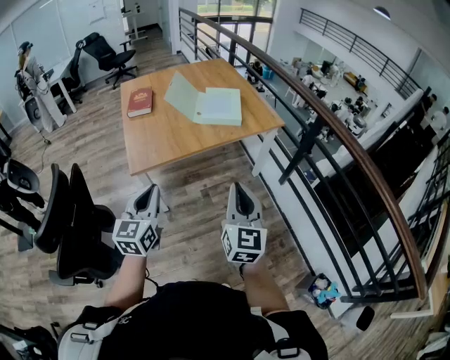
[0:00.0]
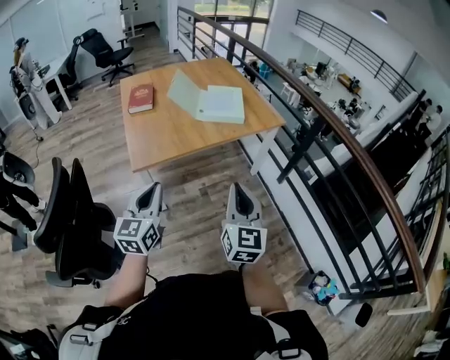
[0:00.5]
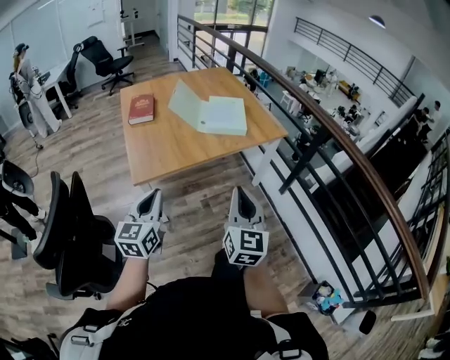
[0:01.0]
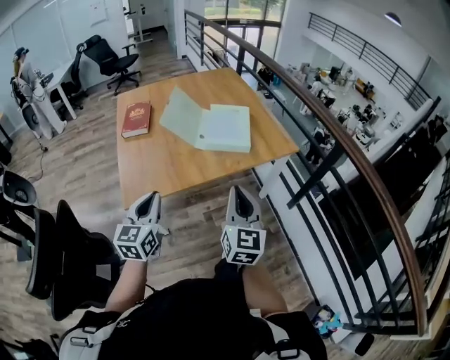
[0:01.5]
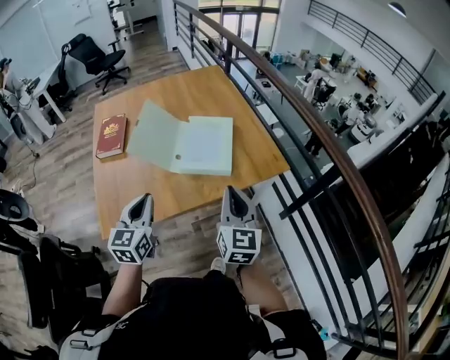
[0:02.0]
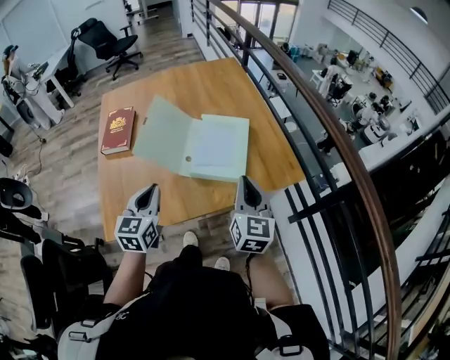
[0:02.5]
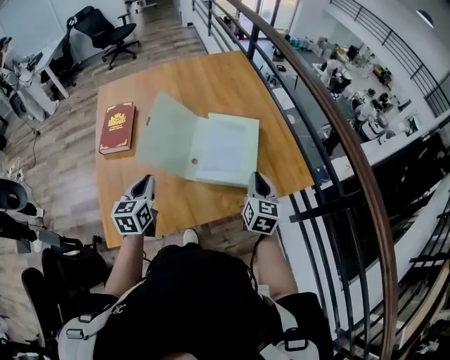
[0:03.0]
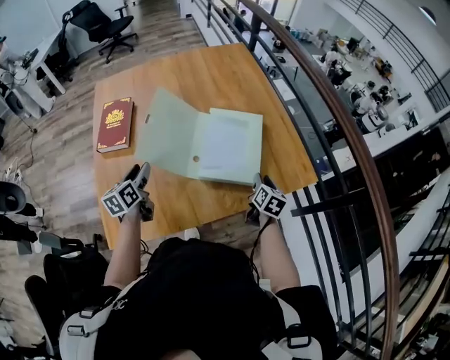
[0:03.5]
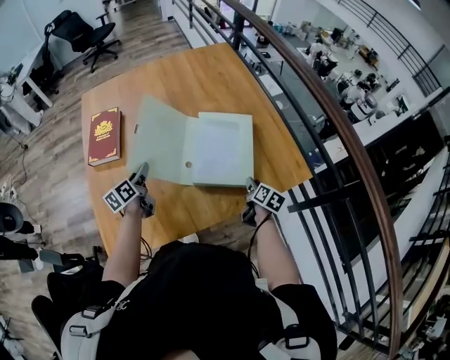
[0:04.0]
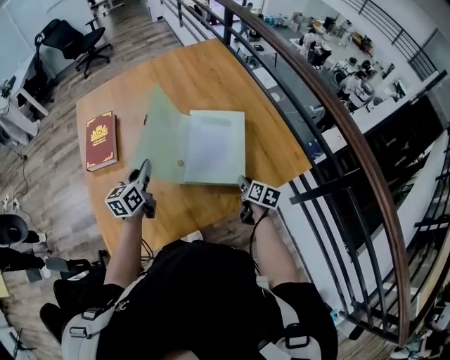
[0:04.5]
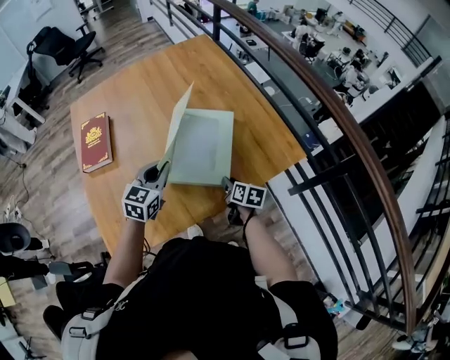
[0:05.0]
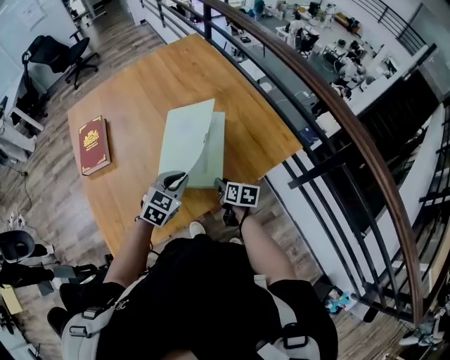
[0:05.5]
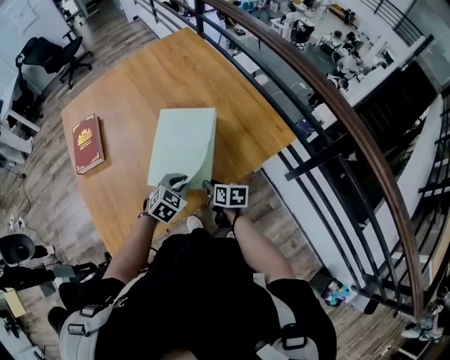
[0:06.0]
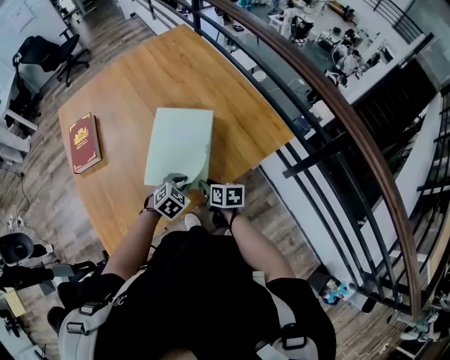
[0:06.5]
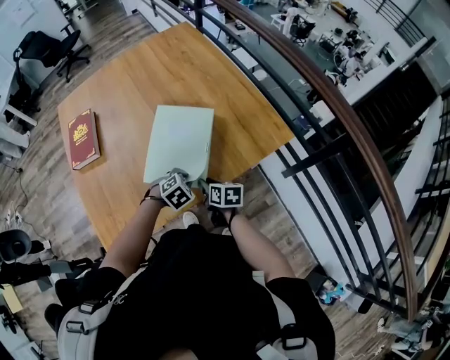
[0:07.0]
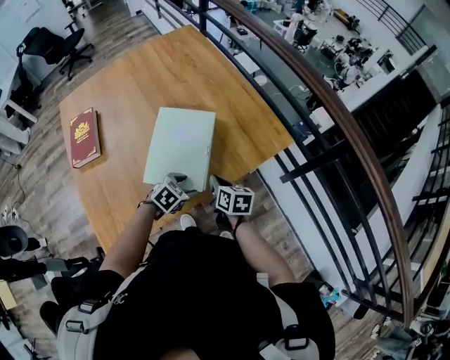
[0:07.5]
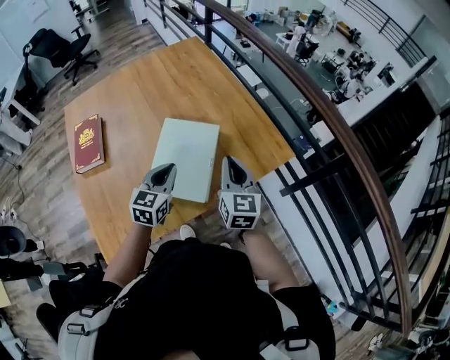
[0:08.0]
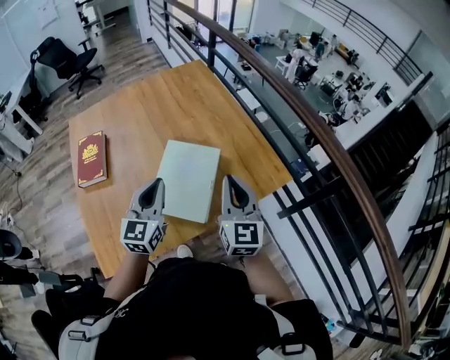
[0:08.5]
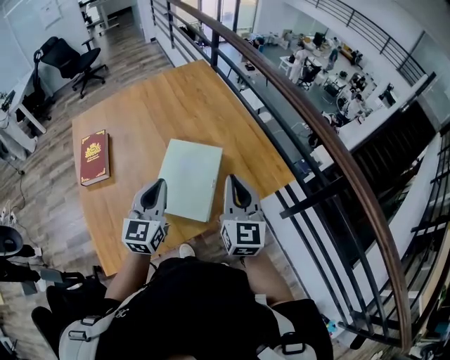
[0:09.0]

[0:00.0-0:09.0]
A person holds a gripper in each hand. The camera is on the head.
0:00.0 to 0:02.0: Both grippers travel together forward, roughly 35 cm.
0:02.0 to 0:04.5: The left gripper travels forward, downward and to the left by about 30 cm, changes its angle by roughly 20 degrees, and opens, then closes again. Meanwhile the right gripper is displaced downward and forward by roughly 35 cm, tips its fingers downward by roughly 40 degrees, and opens its fingers.
0:04.5 to 0:07.0: The right gripper moves backward and to the left, about 10 cm, while the left gripper is displaced to the right, downward and backward by about 30 cm, and points its fingers about 50 degrees further downward.
0:07.0 to 0:09.0: The grippers both shift upward by about 30 cm. The left gripper points its fingers some 60 degrees further upward, and opens, then closes once more; the right gripper points its fingers approximately 40 degrees further upward, and closes up.

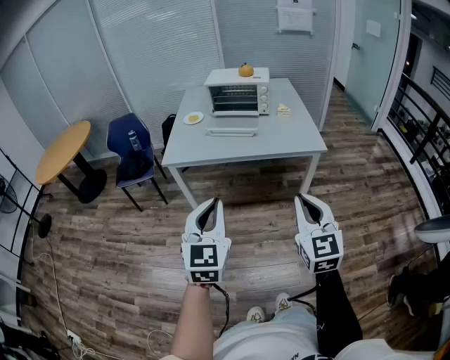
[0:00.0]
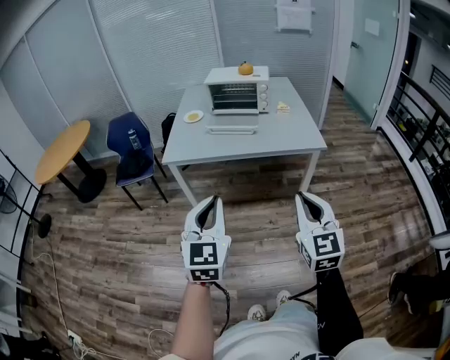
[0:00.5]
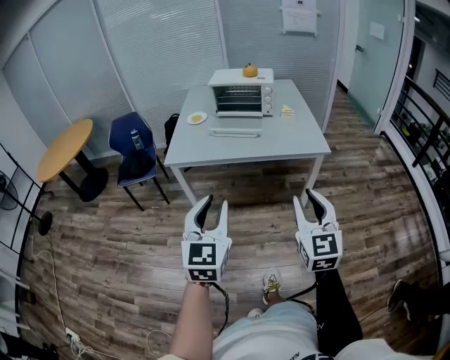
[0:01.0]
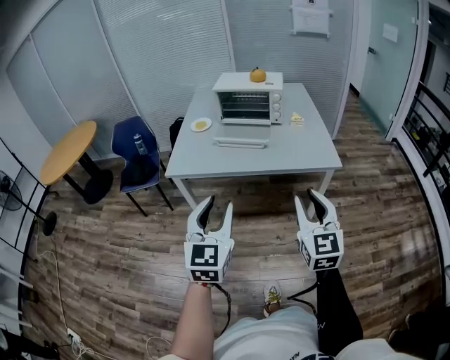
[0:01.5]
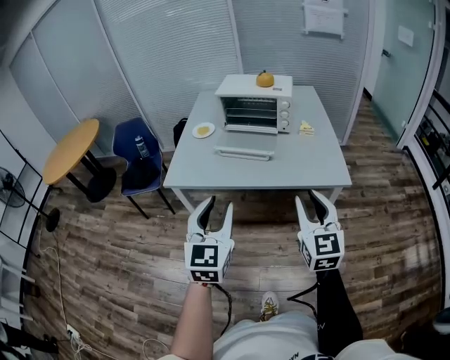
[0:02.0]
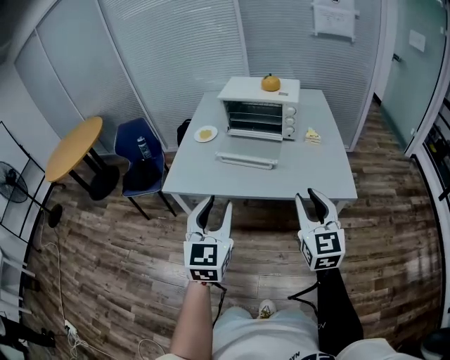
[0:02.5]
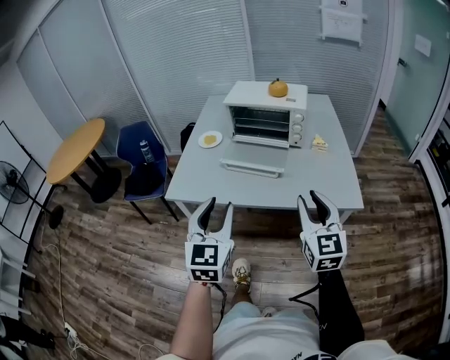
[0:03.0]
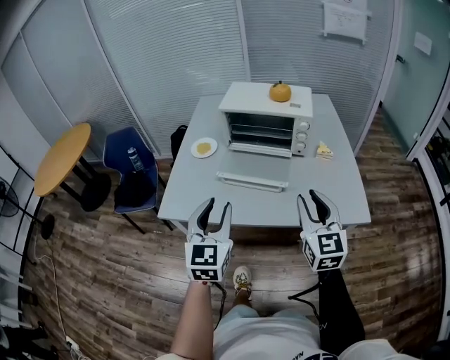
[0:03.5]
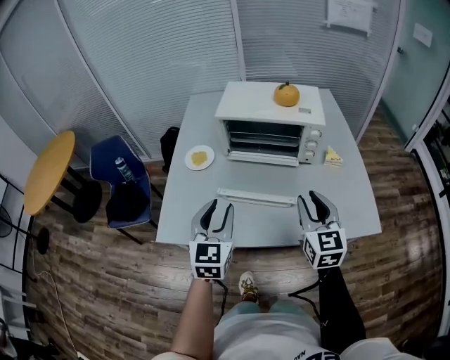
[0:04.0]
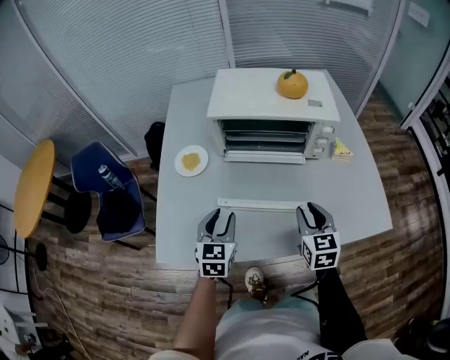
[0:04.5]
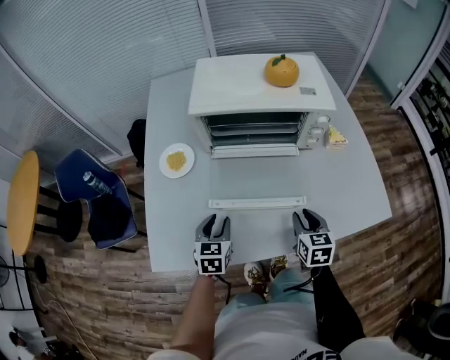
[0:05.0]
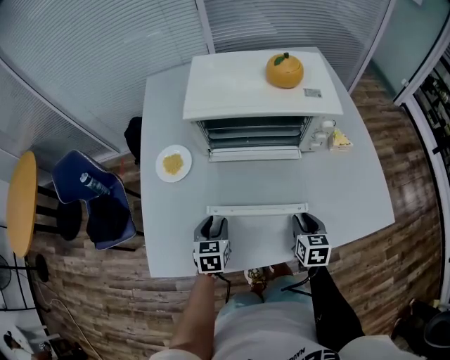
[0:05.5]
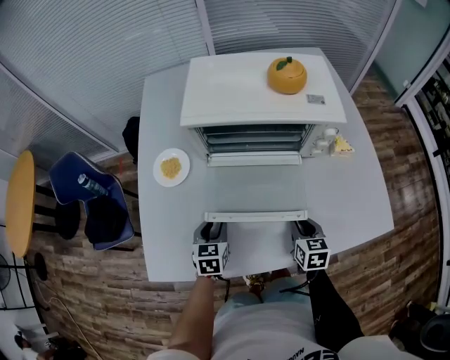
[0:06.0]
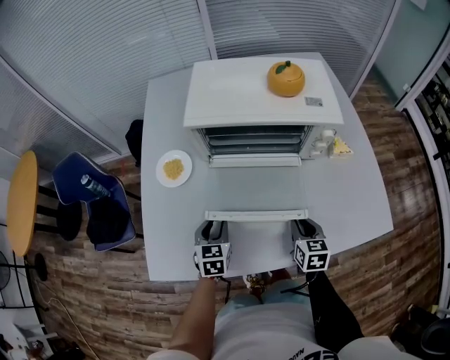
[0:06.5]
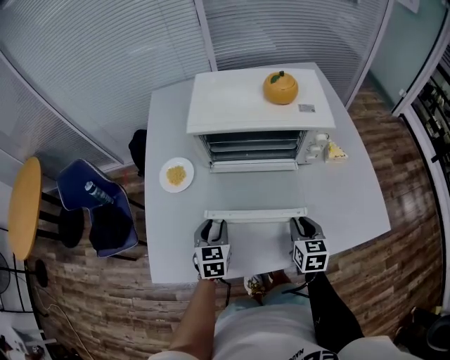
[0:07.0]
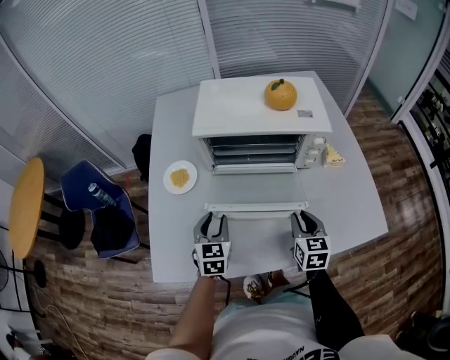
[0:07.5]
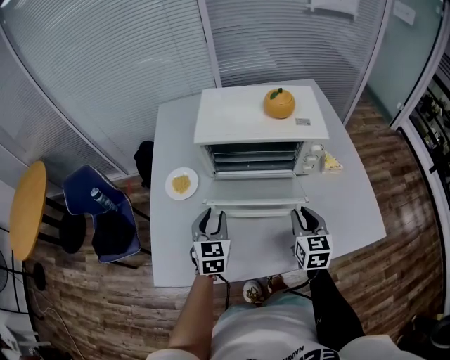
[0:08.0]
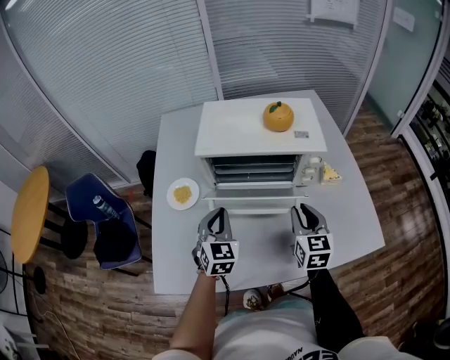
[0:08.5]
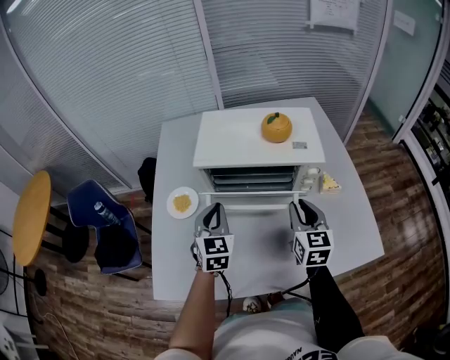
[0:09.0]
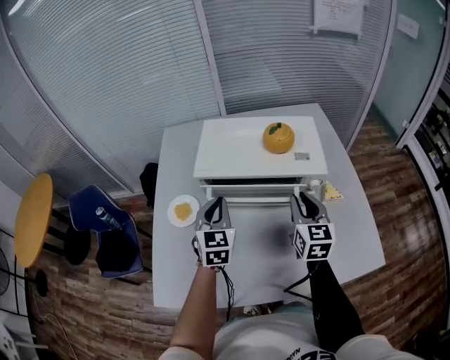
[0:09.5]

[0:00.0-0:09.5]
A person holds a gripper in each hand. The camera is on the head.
0:00.0 to 0:02.0: The two grippers go roughly 20 cm forward. The right gripper opens up; the left gripper opens its fingers.
0:02.0 to 0:04.0: Both grippers travel together forward, about 35 cm.
0:04.0 to 0:05.5: The right gripper shifts about 25 cm downward, and tips its fingers downward by some 30 degrees. The left gripper shifts roughly 30 cm downward and forward, and turns by approximately 30 degrees.
0:05.5 to 0:07.5: The two grippers go roughly 10 cm upward.
0:07.5 to 0:09.5: The grippers both shift upward and forward by approximately 20 cm. The left gripper closes up.

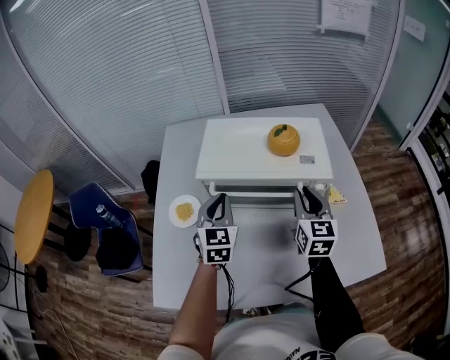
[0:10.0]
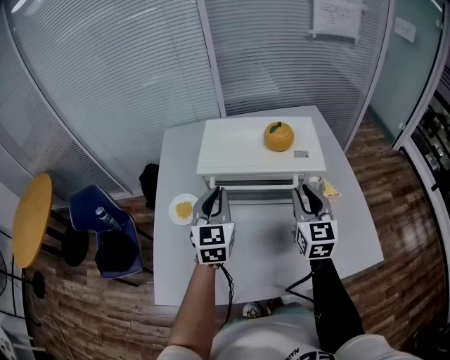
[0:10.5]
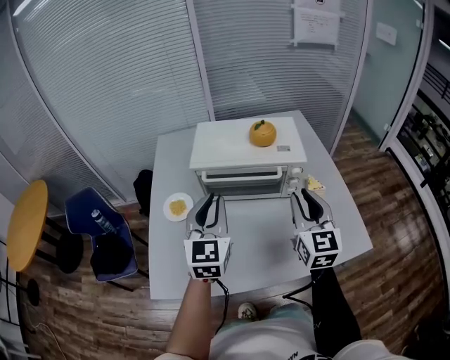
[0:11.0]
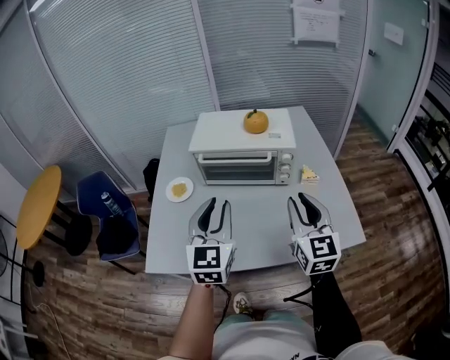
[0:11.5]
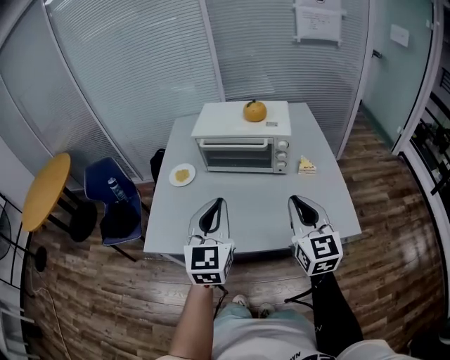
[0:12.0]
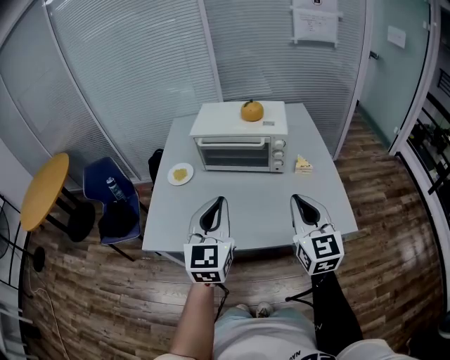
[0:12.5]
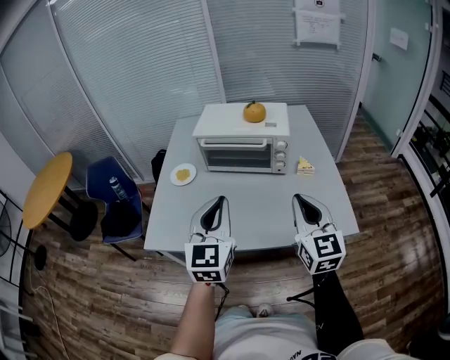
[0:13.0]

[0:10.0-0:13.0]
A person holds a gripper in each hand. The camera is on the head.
0:10.0 to 0:11.5: The right gripper heads backward, covering some 20 cm. Meanwhile the left gripper shifts about 25 cm backward and upward.
0:11.5 to 0:13.0: The grippers both shift backward by roughly 10 cm.

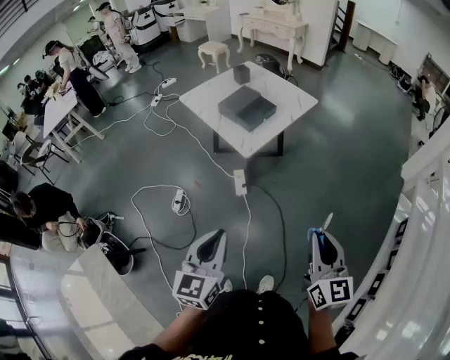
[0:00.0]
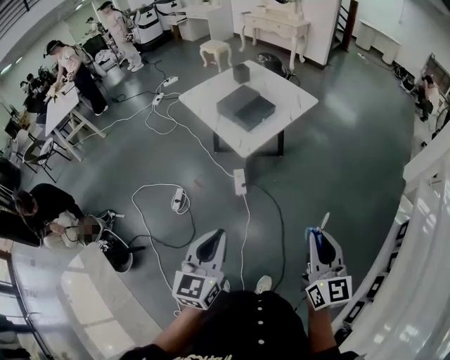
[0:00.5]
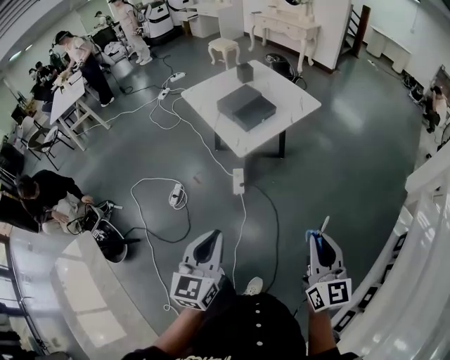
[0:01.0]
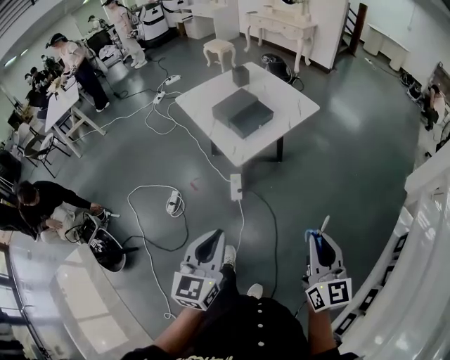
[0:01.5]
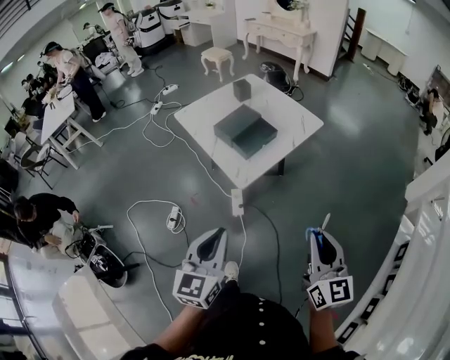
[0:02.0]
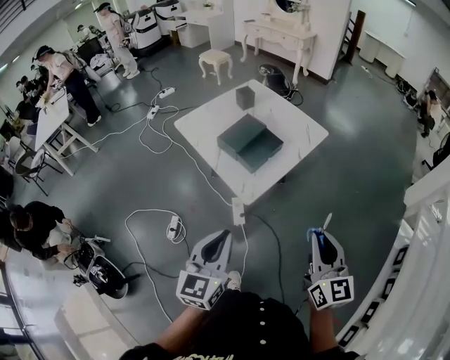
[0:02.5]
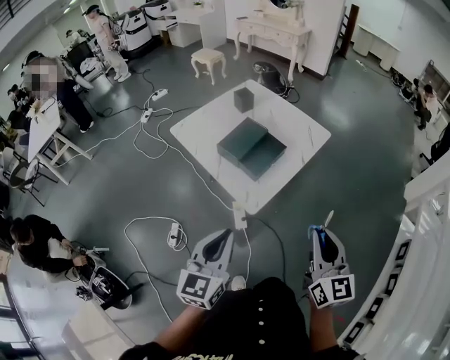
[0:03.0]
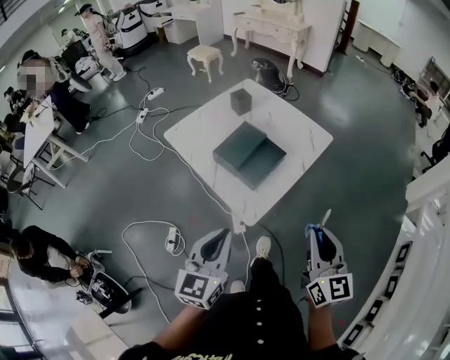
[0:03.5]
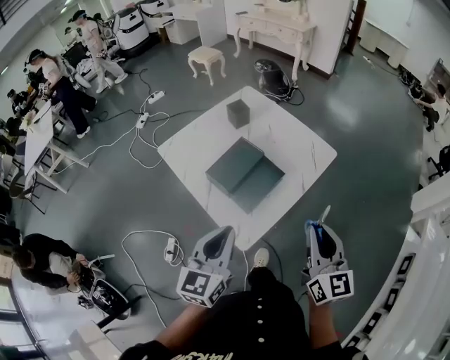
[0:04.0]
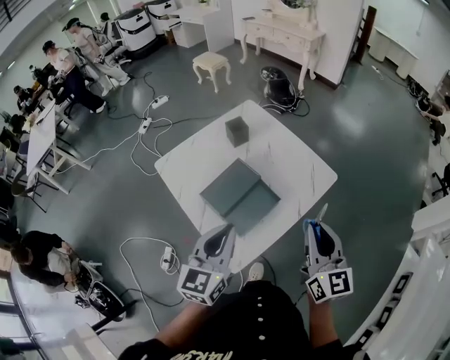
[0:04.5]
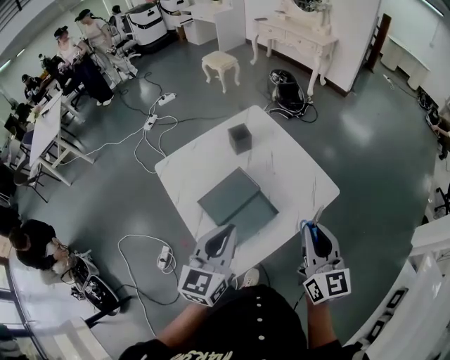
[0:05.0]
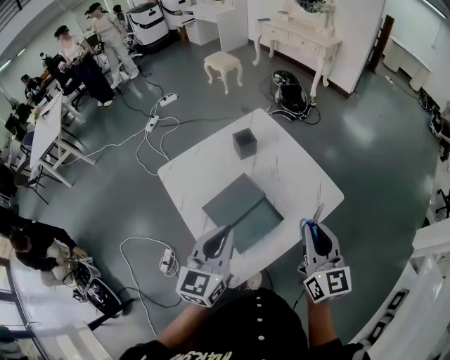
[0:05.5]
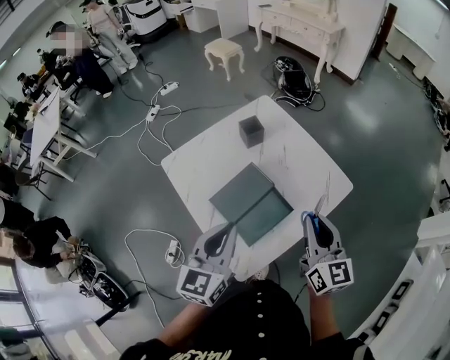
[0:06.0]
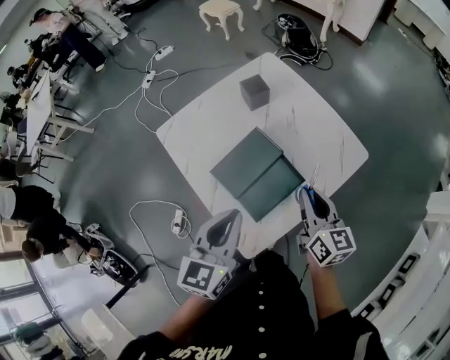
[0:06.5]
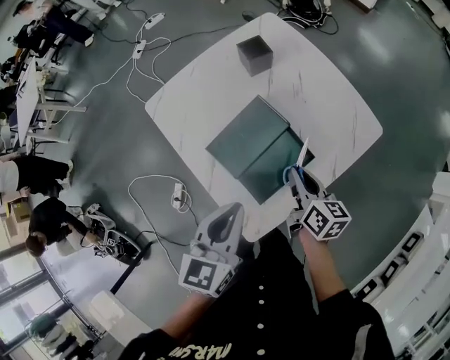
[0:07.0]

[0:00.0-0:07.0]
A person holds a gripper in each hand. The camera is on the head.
0:00.0 to 0:02.0: Both grippers travel together forward, approximately 15 cm.
0:02.0 to 0:03.5: The left gripper travels forward by some 20 cm, while the right gripper is displaced forward and to the left by roughly 20 cm.
0:03.5 to 0:05.0: The grippers both shift forward by approximately 30 cm.
0:05.0 to 0:07.0: The right gripper is displaced downward and to the left by approximately 25 cm, and changes its angle by approximately 40 degrees. Meanwhile the left gripper heads downward and to the left, covering some 10 cm.
